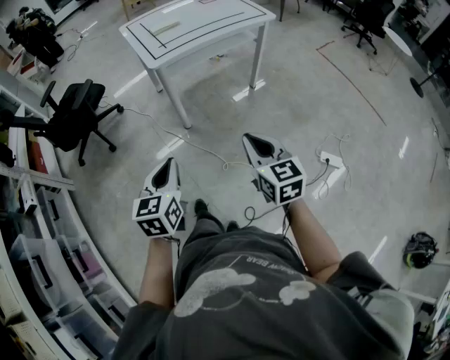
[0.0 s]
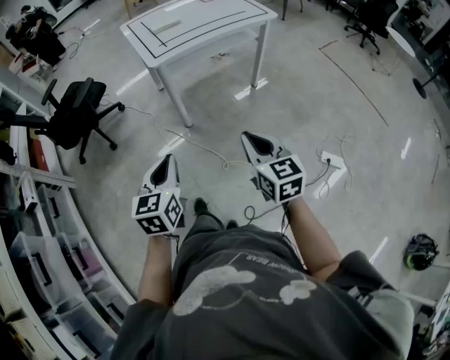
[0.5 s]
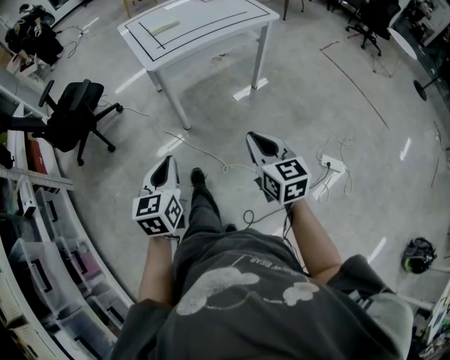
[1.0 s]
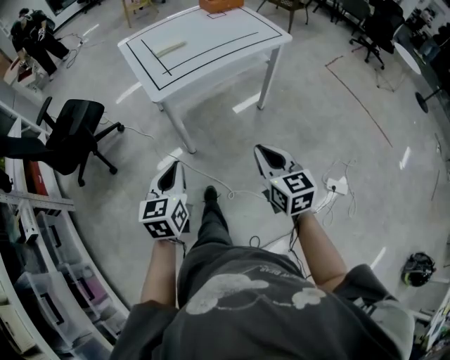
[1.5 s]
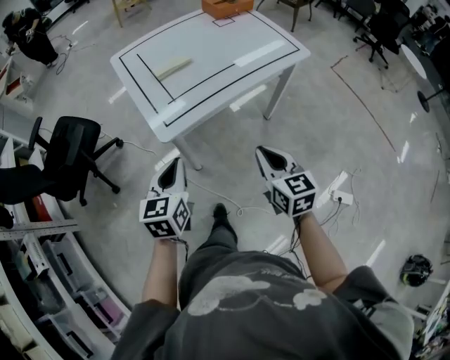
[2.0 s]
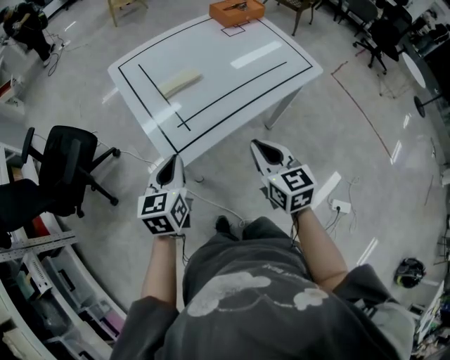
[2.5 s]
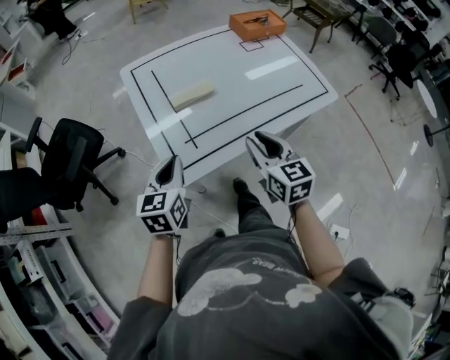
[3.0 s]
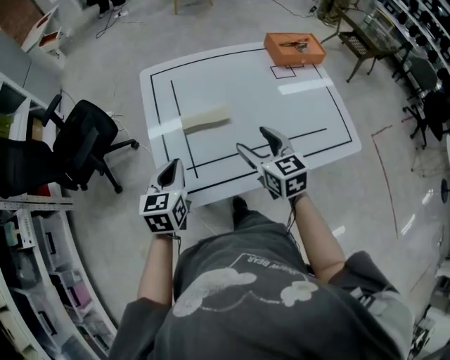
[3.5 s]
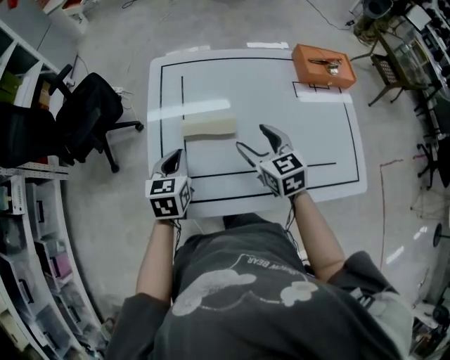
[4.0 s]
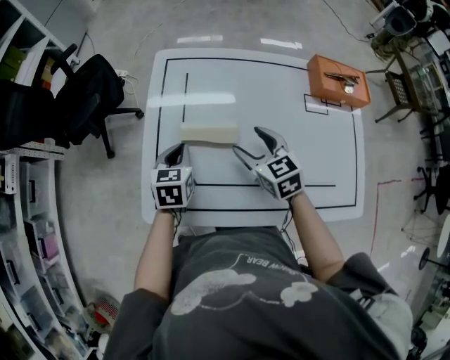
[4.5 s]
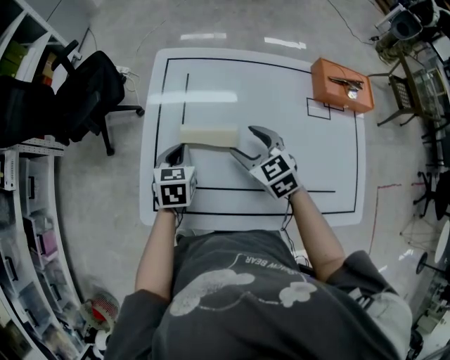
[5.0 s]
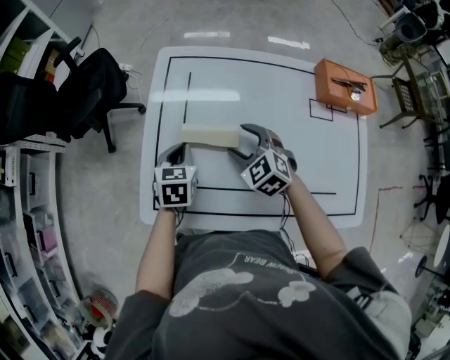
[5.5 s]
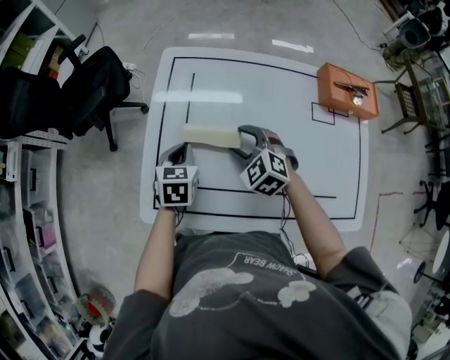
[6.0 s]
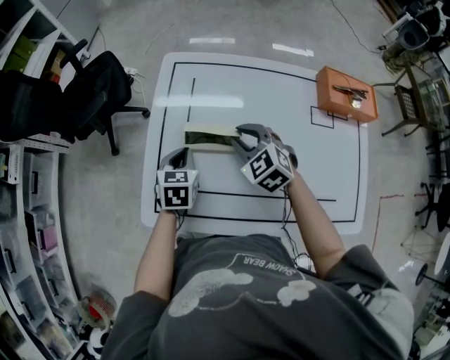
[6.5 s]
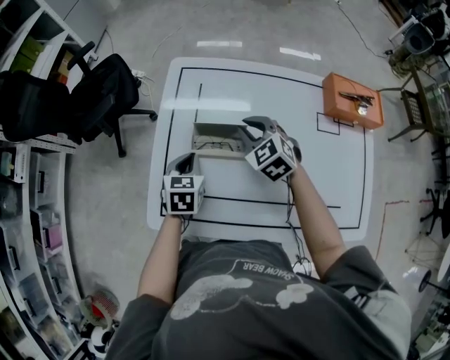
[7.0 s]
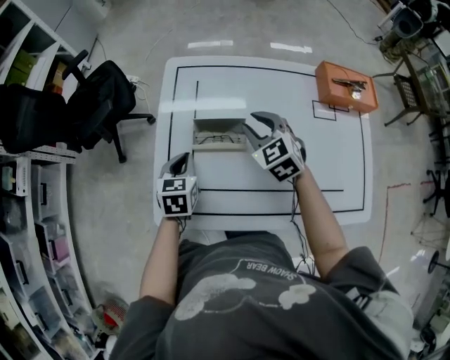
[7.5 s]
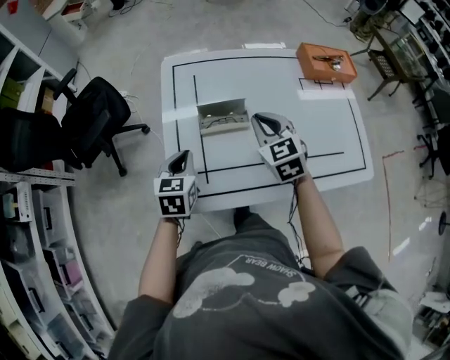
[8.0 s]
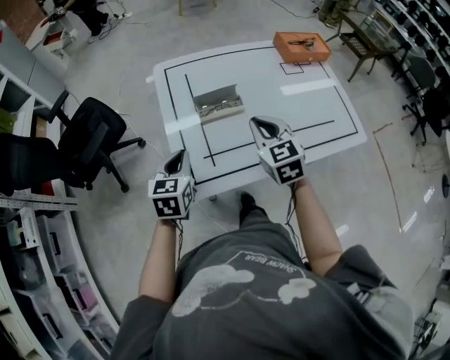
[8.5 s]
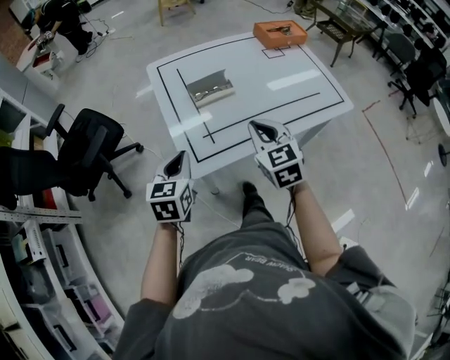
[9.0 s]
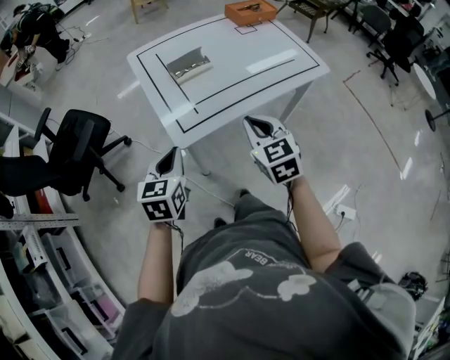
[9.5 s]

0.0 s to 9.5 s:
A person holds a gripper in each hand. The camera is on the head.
0.0 to 2.0 s: Both grippers travel together forward, approximately 40 cm.
2.0 to 4.0 s: The left gripper changes place by roughly 35 cm, and changes its angle by some 30 degrees; the right gripper changes place by roughly 50 cm, changes its angle by about 40 degrees, and opens.
4.0 to 5.5 s: The left gripper moves downward, about 5 cm, while the right gripper goes about 10 cm downward and forward, and changes its angle by approximately 40 degrees.
5.5 to 7.5 s: The right gripper heads upward, covering roughly 5 cm, and closes up.
7.5 to 9.5 s: The right gripper shifts by some 40 cm, changes its angle by approximately 40 degrees, and closes up, while the left gripper changes place by some 30 cm, and rotates some 30 degrees.

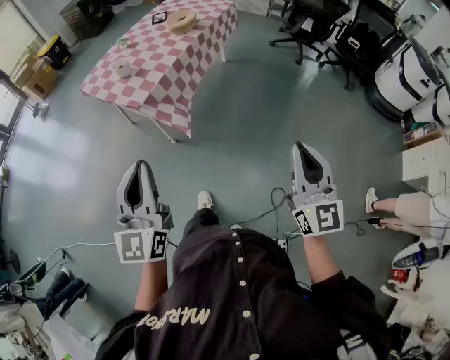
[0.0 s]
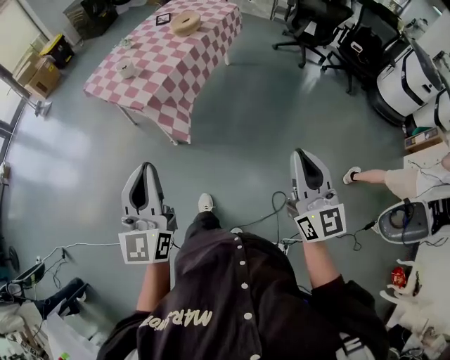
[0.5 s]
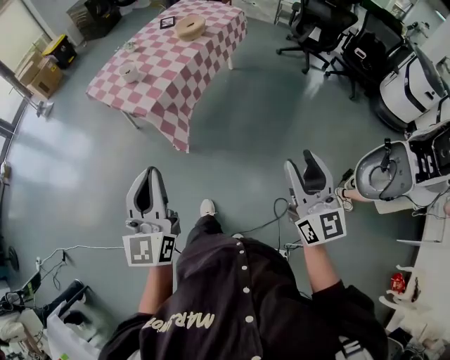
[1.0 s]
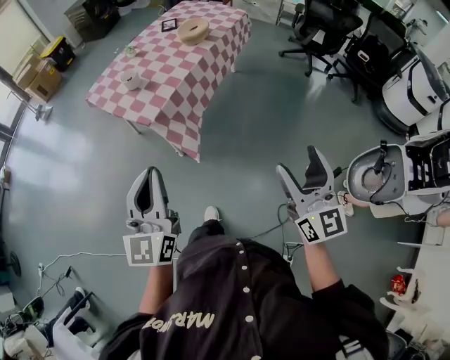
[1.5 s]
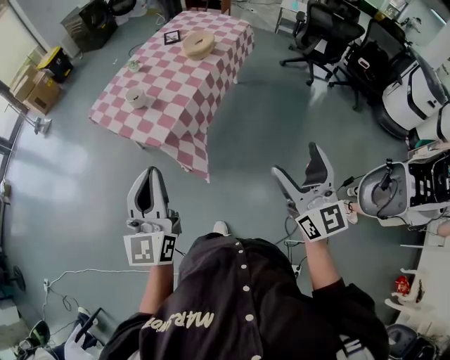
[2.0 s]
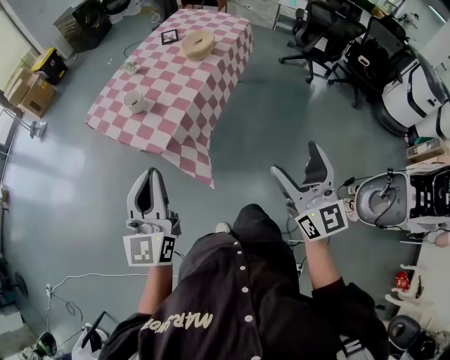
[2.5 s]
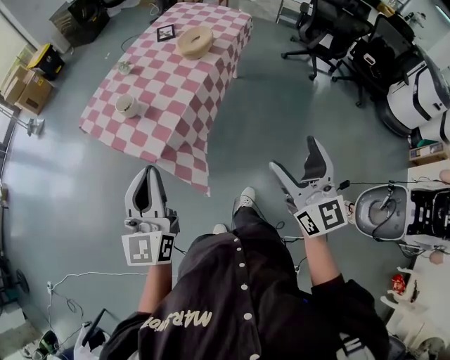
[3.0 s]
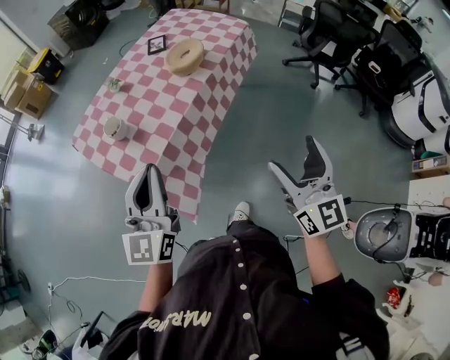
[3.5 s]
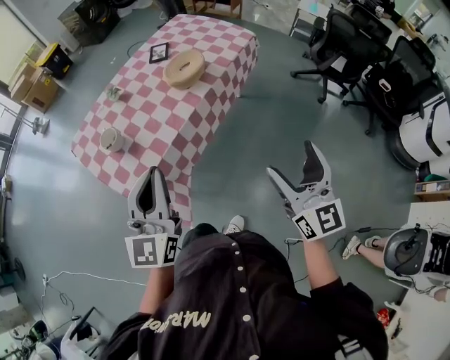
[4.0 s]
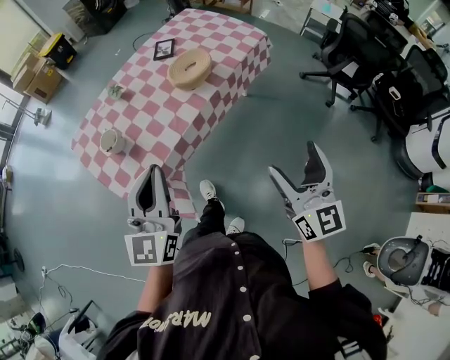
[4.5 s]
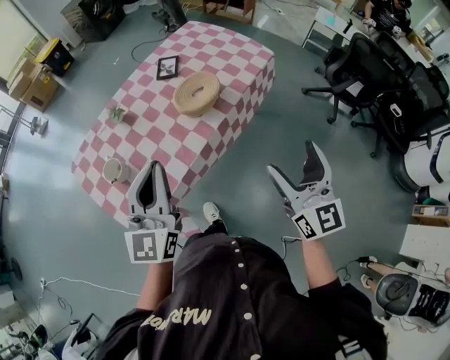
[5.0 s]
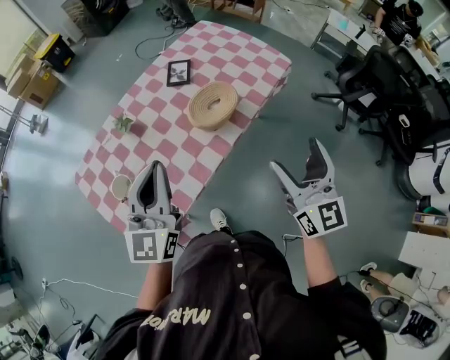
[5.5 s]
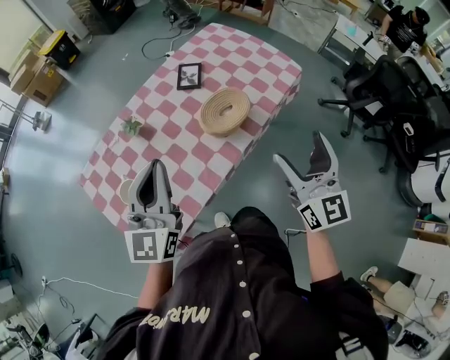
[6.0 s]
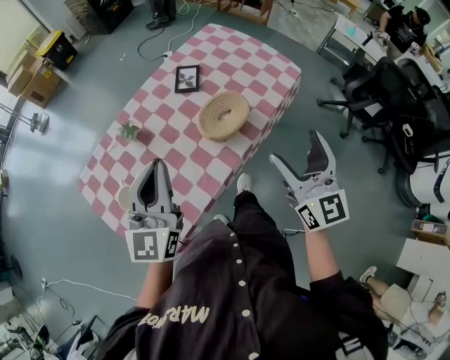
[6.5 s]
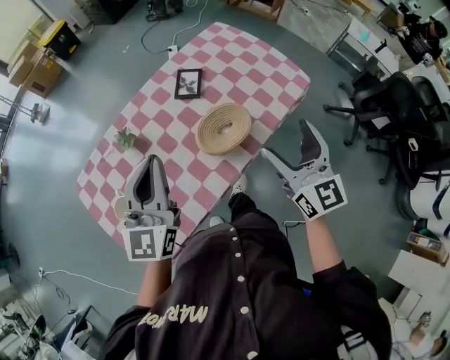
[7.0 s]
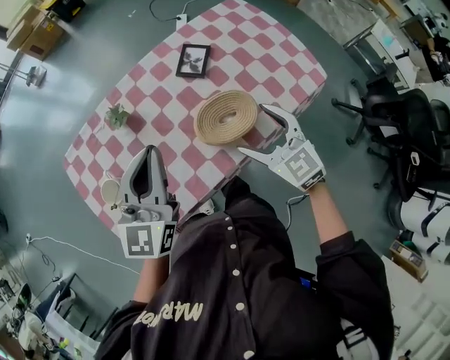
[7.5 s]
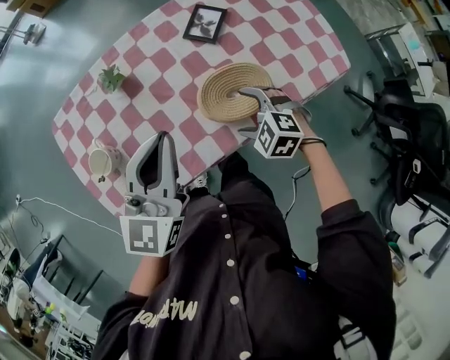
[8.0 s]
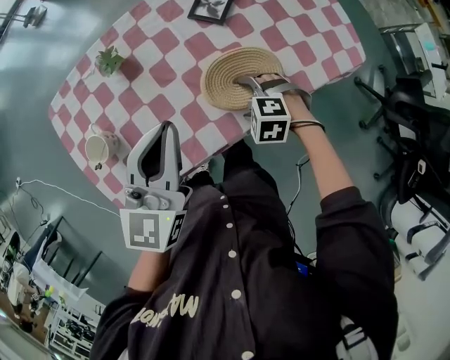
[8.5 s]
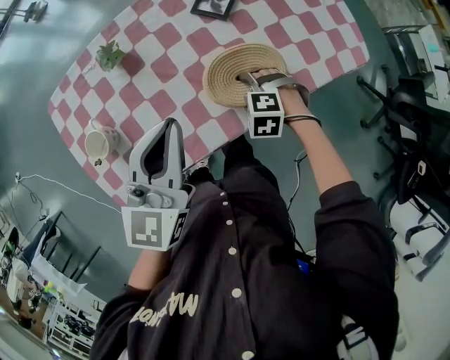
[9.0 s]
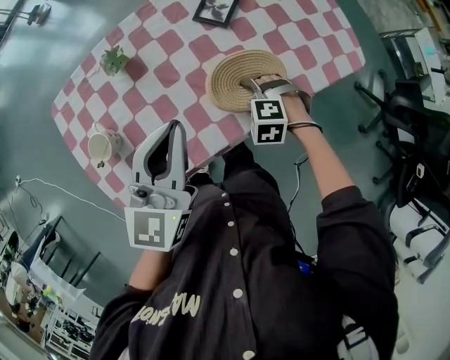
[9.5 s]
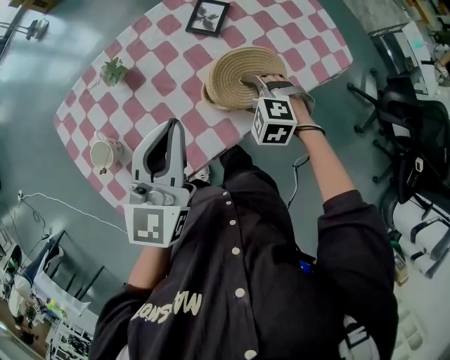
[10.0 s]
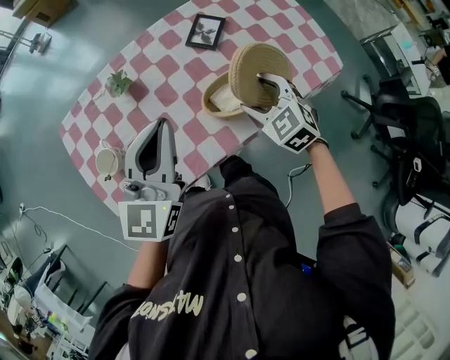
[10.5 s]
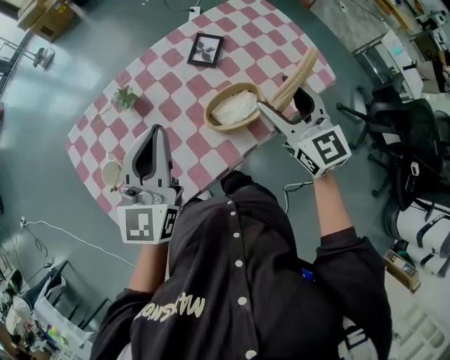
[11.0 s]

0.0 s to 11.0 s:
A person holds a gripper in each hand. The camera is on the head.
0.0 to 2.0 s: The right gripper travels forward and to the left by approximately 20 cm, and opens up. The left gripper is displaced forward by approximately 20 cm.
2.0 to 3.5 s: The left gripper goes roughly 25 cm forward and to the right, while the right gripper moves forward, roughly 25 cm.
3.5 to 5.5 s: Both grippers travel together forward, roughly 35 cm.
5.5 to 7.5 s: The left gripper changes place by some 15 cm. The right gripper moves about 30 cm, and turns by about 50 degrees.
7.5 to 9.0 s: The left gripper shifts about 5 cm downward. Meanwhile the right gripper travels downward by approximately 25 cm, and tilts its fingers approximately 50 degrees downward.
9.0 to 11.0 s: The right gripper heads upward, covering about 30 cm, and points its fingers approximately 70 degrees further upward. The left gripper shifts some 10 cm upward.

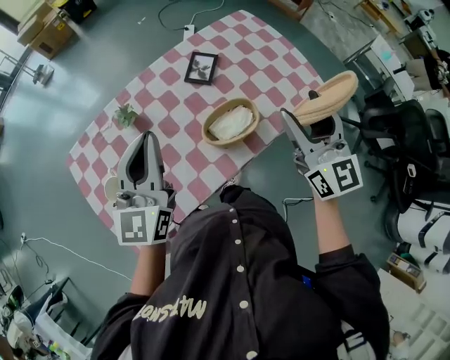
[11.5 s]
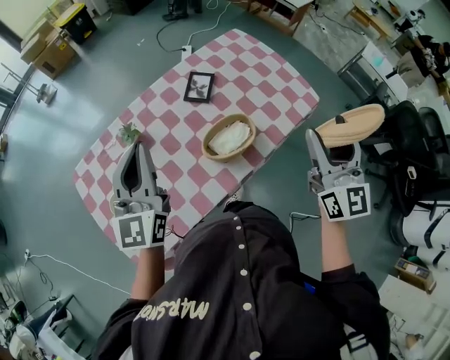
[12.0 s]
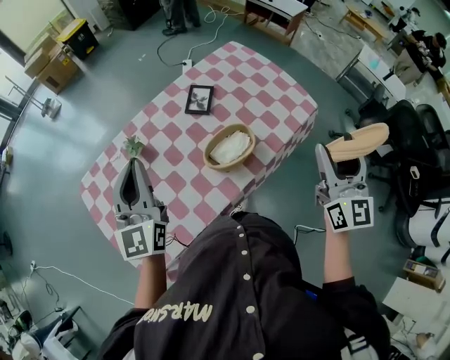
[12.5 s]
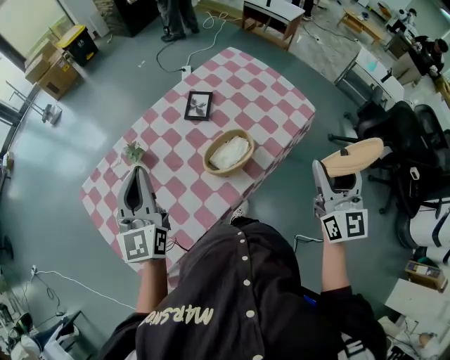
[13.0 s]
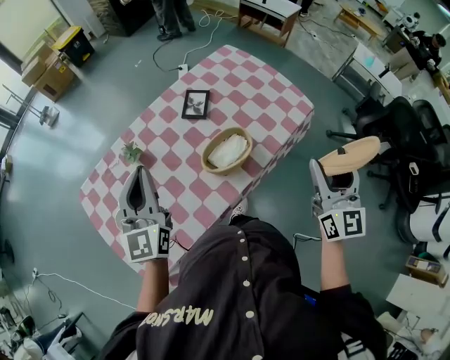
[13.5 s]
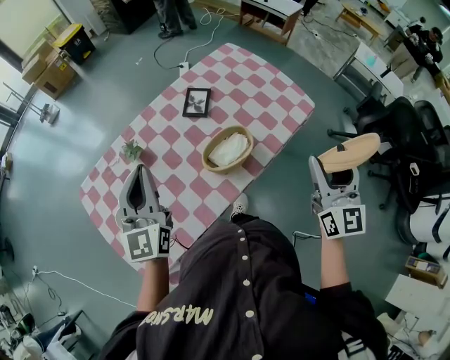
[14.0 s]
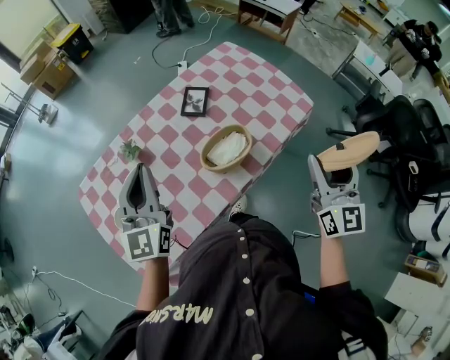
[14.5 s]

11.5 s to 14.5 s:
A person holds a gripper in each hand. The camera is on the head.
11.5 to 13.0 s: The right gripper goes some 15 cm to the right and backward, and turns by roughly 20 degrees.
13.0 to 14.5 s: The grippers make only small movements.

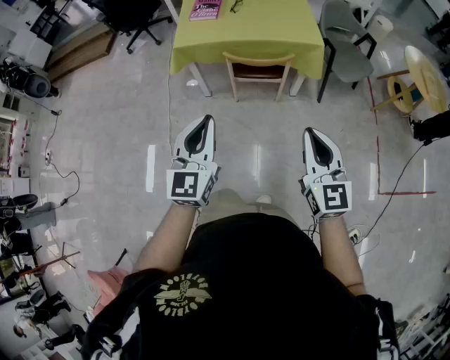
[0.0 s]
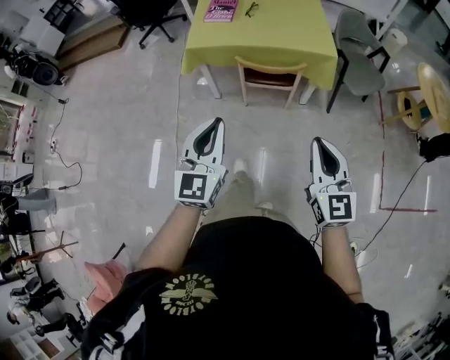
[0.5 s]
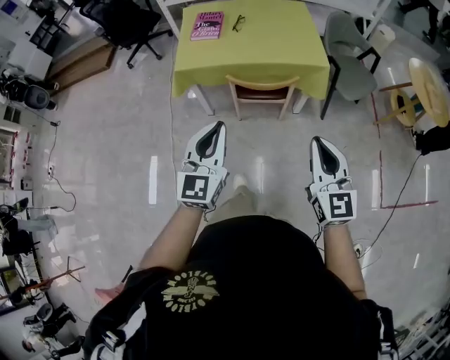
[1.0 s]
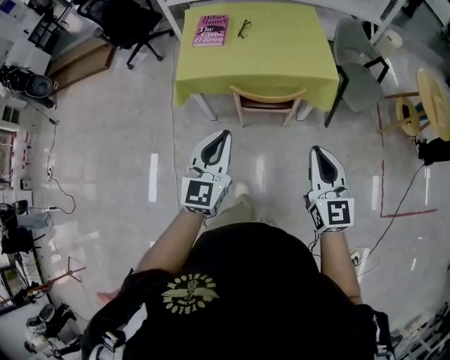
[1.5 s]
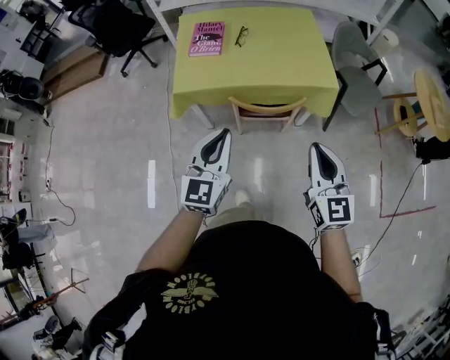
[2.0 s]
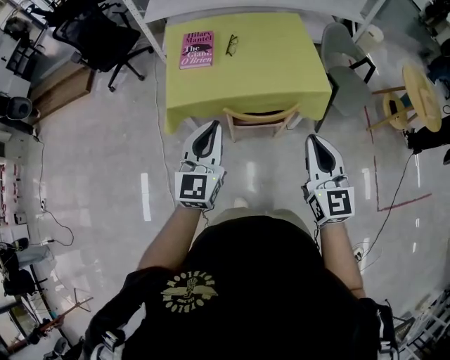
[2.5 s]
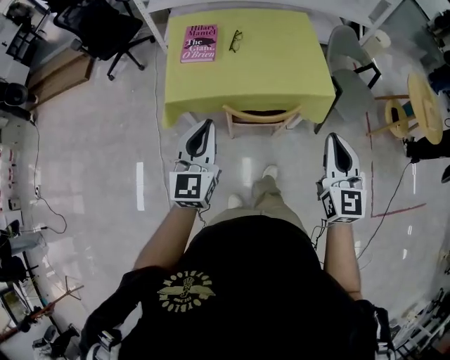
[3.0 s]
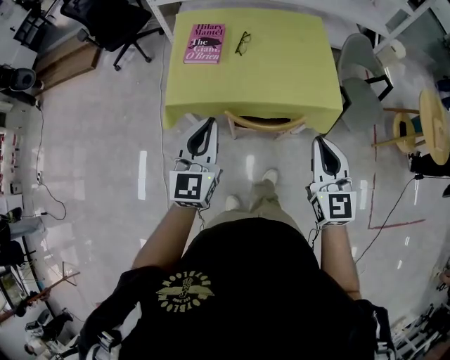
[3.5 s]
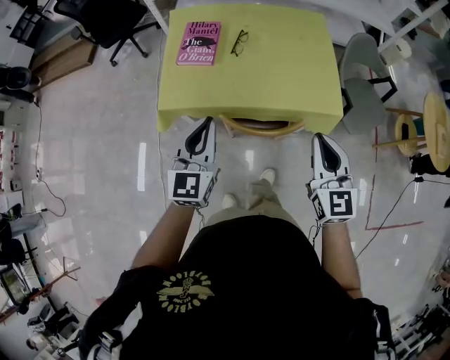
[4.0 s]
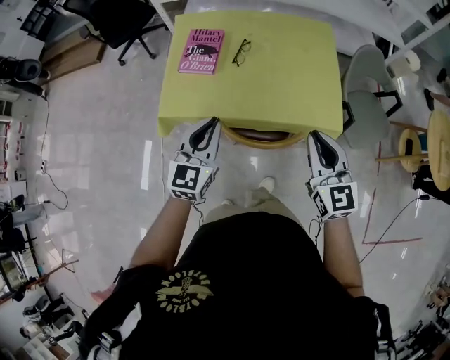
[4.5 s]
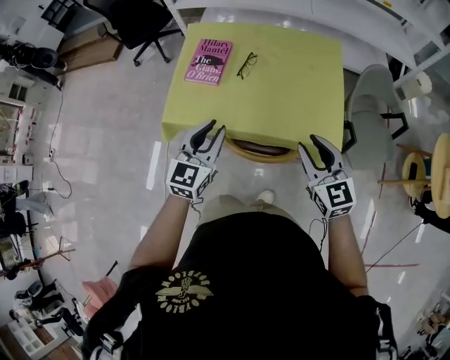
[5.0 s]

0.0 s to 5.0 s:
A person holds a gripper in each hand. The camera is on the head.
0.0 to 2.5 s: The grippers both shift forward by roughly 30 cm.
2.5 to 5.0 s: The left gripper is displaced forward and to the right by about 20 cm. Meanwhile the right gripper is displaced forward by some 25 cm, rotates approximately 30 degrees, and opens up.
